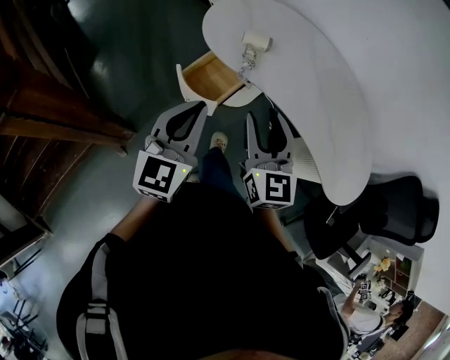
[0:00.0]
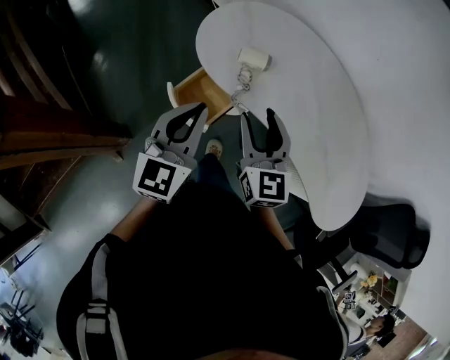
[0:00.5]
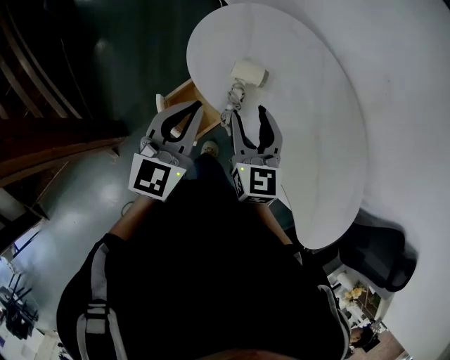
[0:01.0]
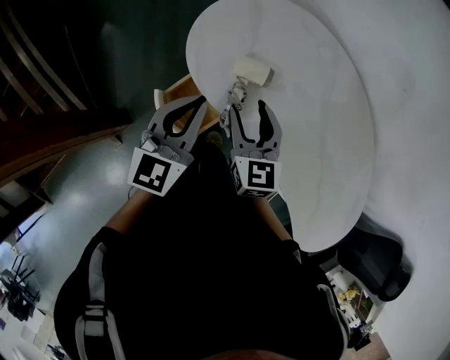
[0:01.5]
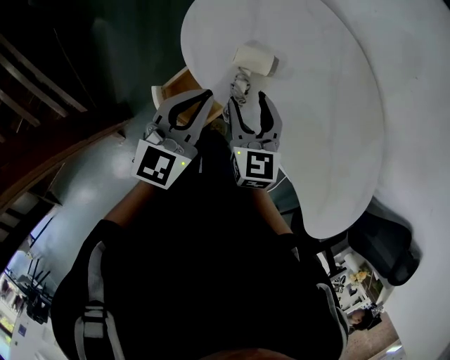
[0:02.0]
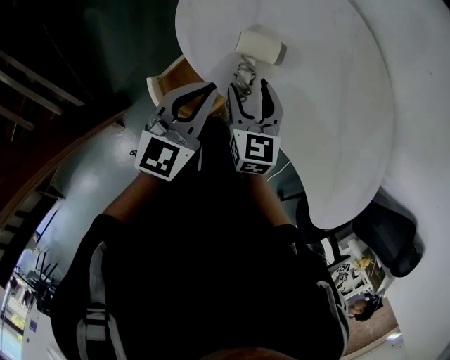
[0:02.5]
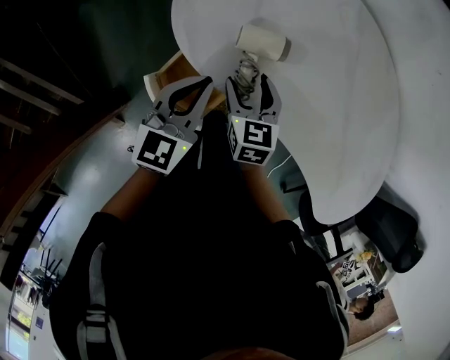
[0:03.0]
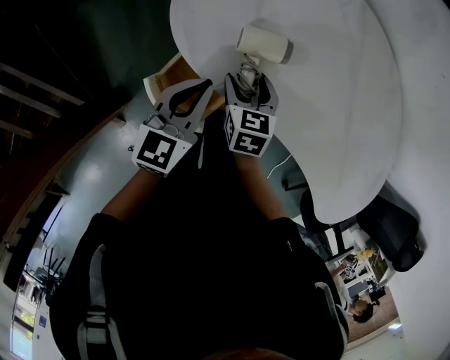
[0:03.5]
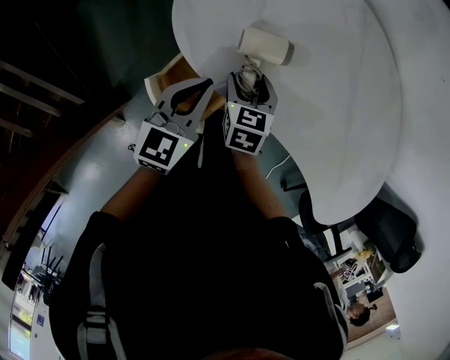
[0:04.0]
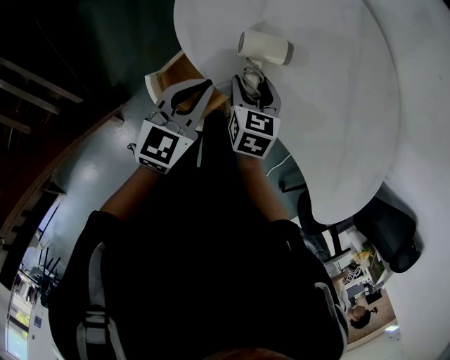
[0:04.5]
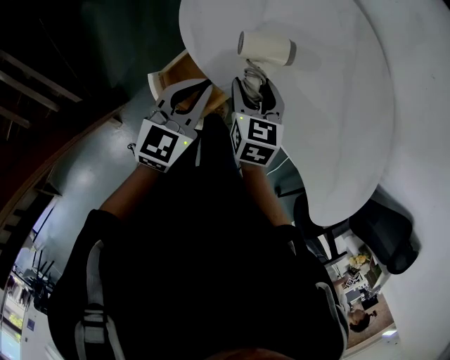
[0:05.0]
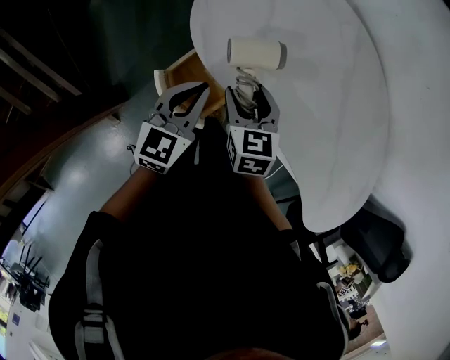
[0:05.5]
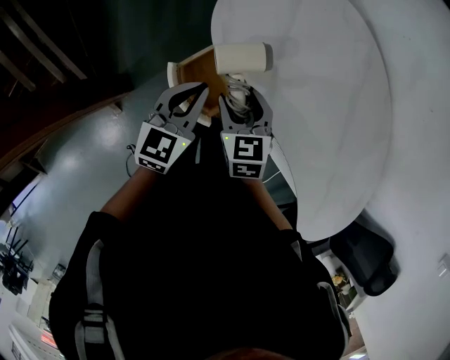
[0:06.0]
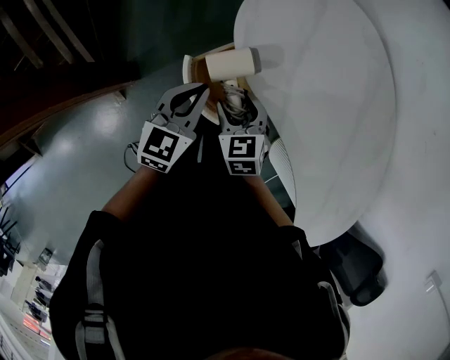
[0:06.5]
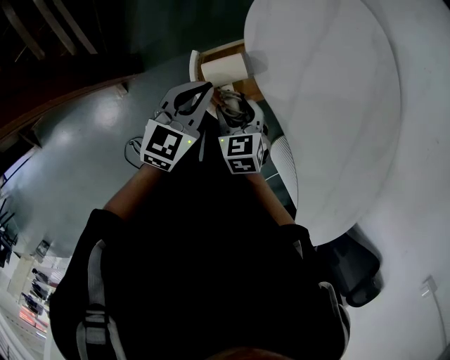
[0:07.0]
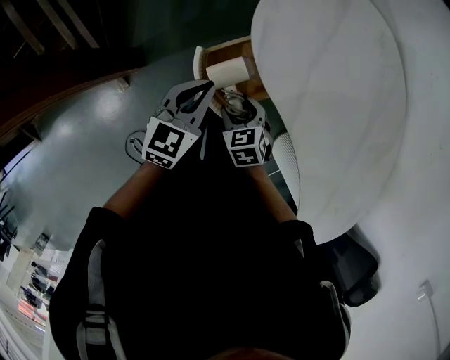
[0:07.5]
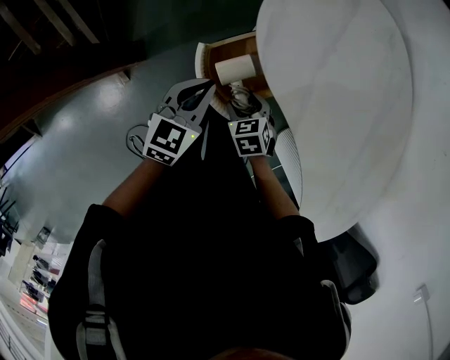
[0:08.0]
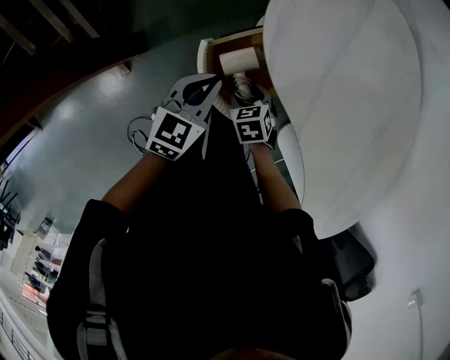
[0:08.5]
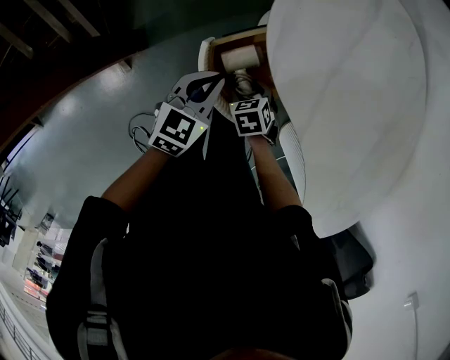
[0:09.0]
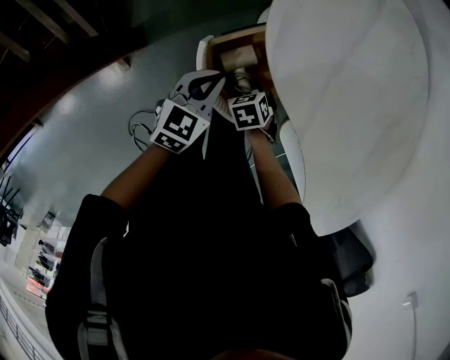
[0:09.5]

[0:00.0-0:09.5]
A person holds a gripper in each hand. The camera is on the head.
0:00.0 to 0:02.0: The left gripper shifts approximately 25 cm forward, while the right gripper is displaced forward and downward by some 30 cm, and changes its angle by about 20 degrees.
0:02.0 to 0:04.0: Both grippers move downward, approximately 10 cm. The right gripper swivels approximately 30 degrees.
0:04.0 to 0:05.5: The right gripper heads upward, covering roughly 10 cm.
0:05.5 to 0:07.5: The left gripper travels to the left by about 10 cm. The right gripper shifts some 20 cm downward, to the left and backward, and rotates approximately 40 degrees.
0:07.5 to 0:09.5: Both grippers travel together downward, roughly 10 cm. The right gripper swivels some 20 degrees.

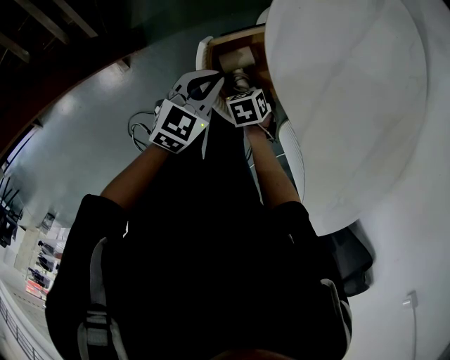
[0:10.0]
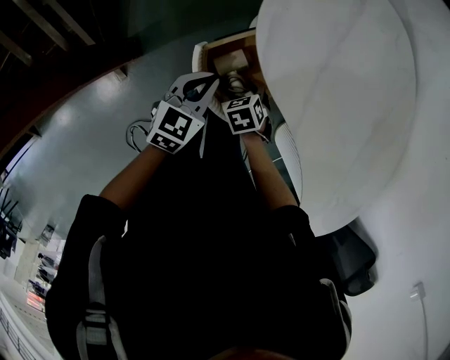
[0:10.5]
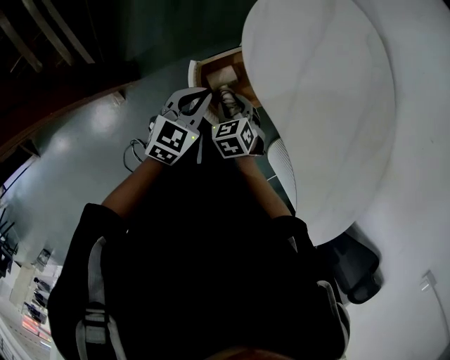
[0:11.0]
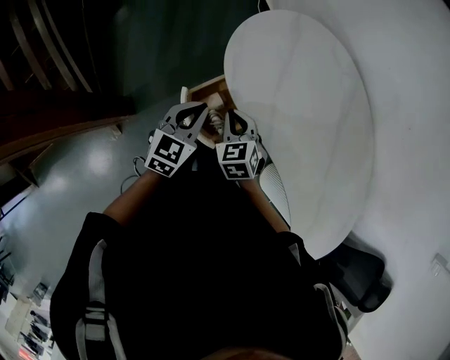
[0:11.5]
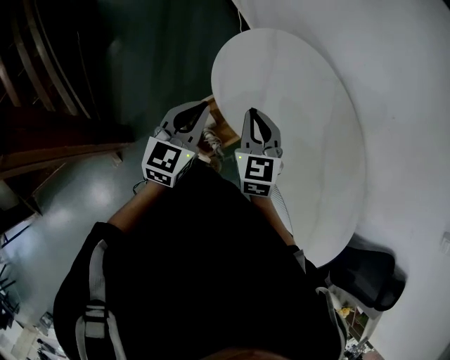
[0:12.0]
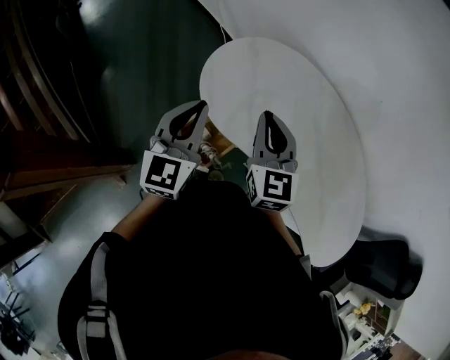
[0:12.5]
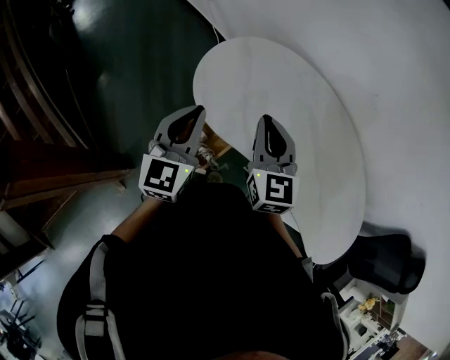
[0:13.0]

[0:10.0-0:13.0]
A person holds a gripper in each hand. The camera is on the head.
0:10.0 to 0:11.5: The left gripper shifts some 15 cm upward, while the right gripper goes about 25 cm upward, tips its fingers upward by roughly 30 degrees, and closes its fingers.
0:11.5 to 0:13.0: The right gripper travels upward and to the right by roughly 25 cm, and points its fingers about 40 degrees further upward. Meanwhile the left gripper heads upward, covering roughly 20 cm, and turns by some 20 degrees.

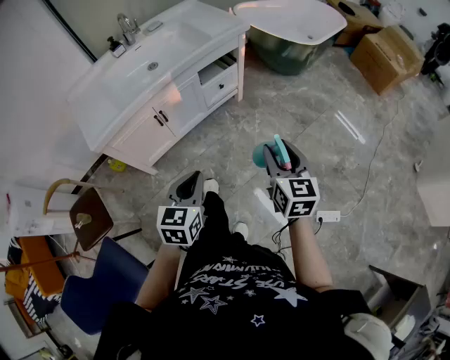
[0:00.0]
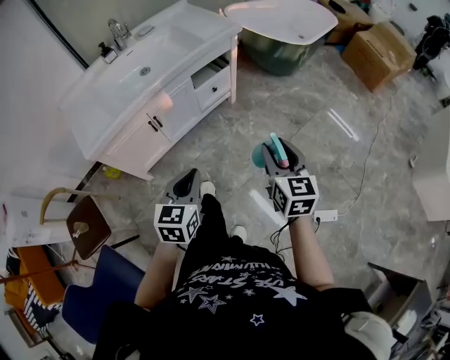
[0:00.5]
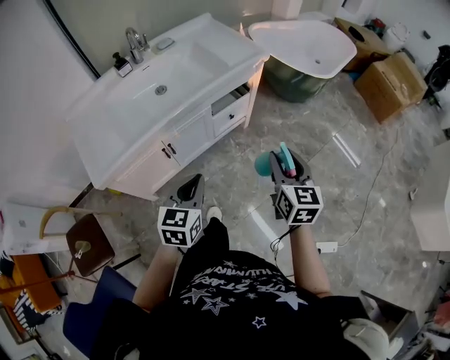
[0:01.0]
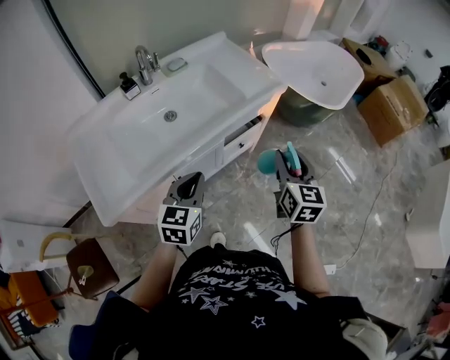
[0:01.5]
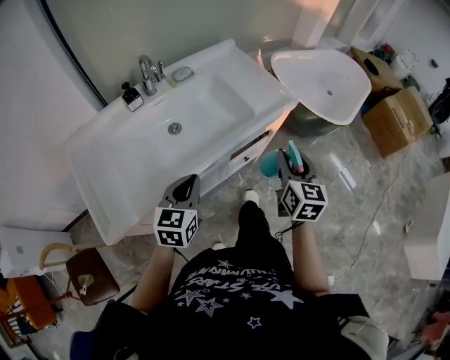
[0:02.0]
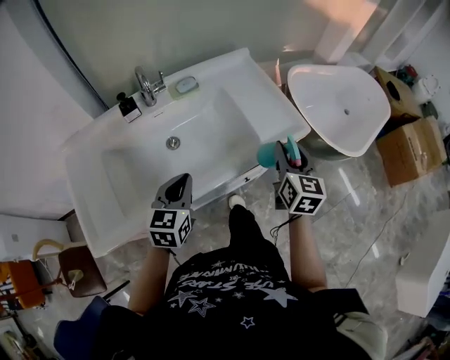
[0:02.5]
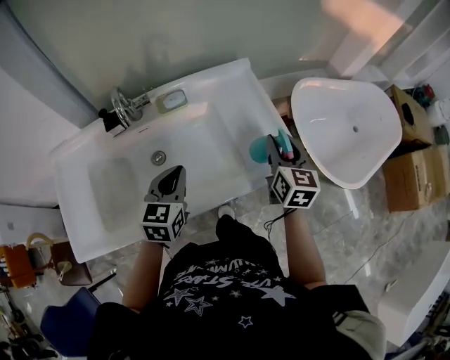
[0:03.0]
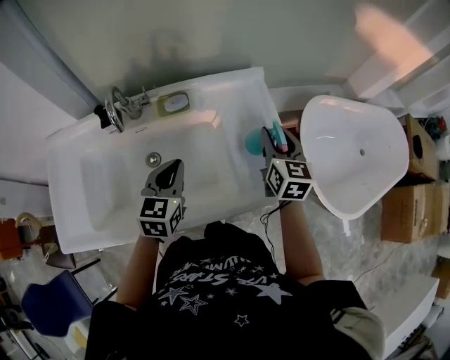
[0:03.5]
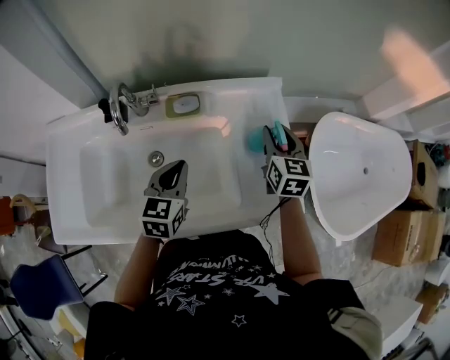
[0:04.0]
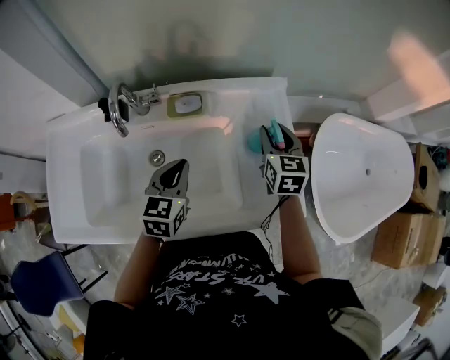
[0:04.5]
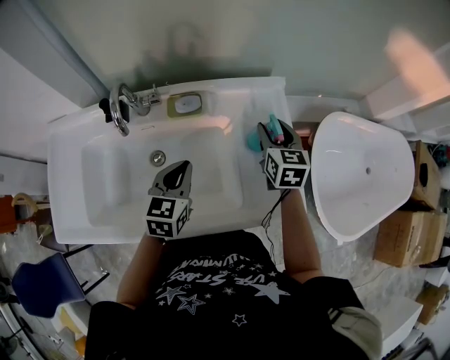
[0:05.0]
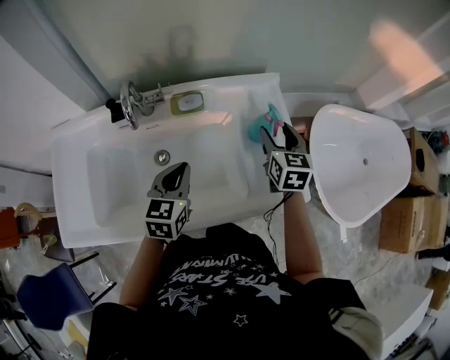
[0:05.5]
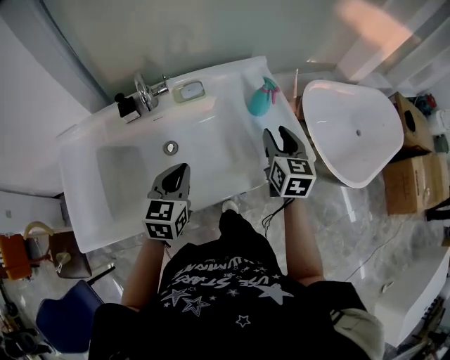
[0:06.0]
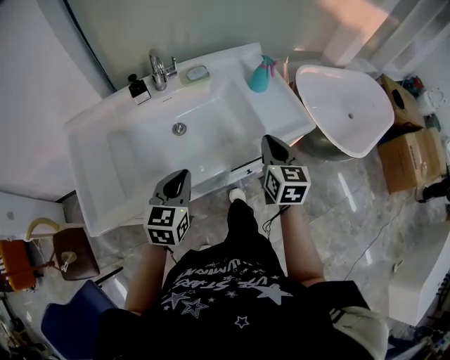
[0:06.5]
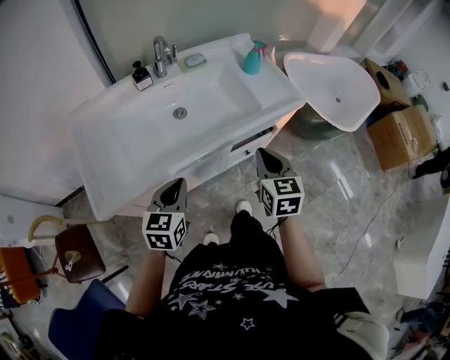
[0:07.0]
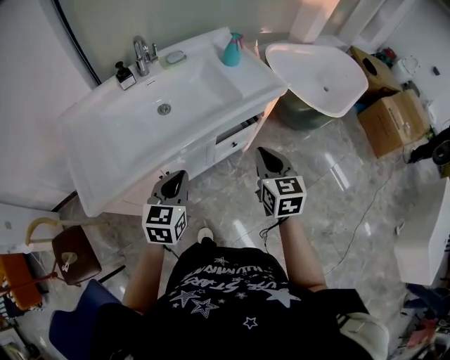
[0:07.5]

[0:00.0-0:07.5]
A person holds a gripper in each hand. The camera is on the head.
0:00.0 to 0:02.0: The two grippers travel together, forward and to the left, about 50 cm.
0:02.0 to 0:04.0: The left gripper changes place by about 35 cm, and swivels roughly 30 degrees, while the right gripper shifts by approximately 50 cm, and turns by roughly 30 degrees.
0:04.0 to 0:05.5: The right gripper opens.
0:05.5 to 0:07.5: Both grippers move backward, roughly 40 cm. The left gripper swivels roughly 20 degrees. The right gripper closes up.

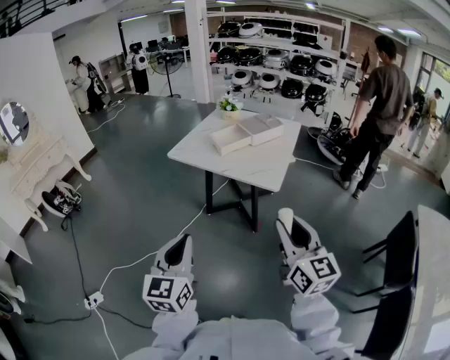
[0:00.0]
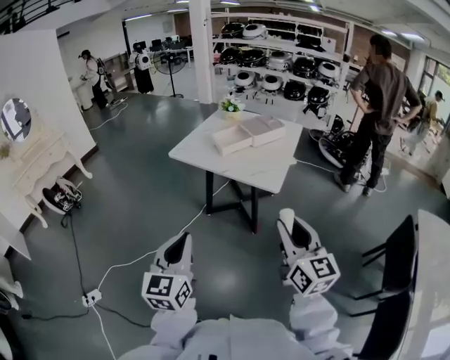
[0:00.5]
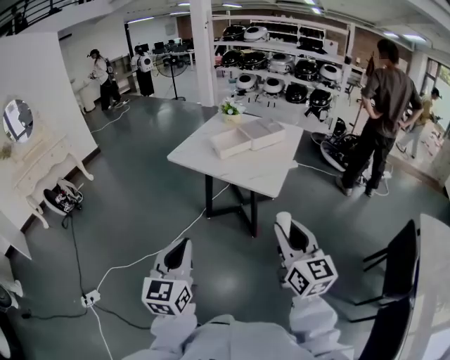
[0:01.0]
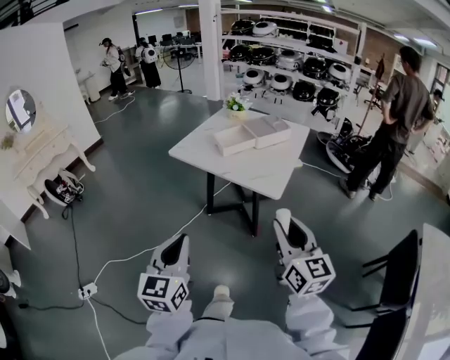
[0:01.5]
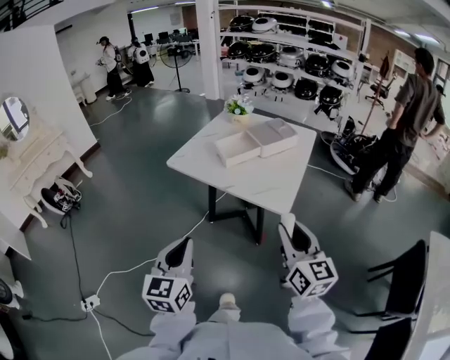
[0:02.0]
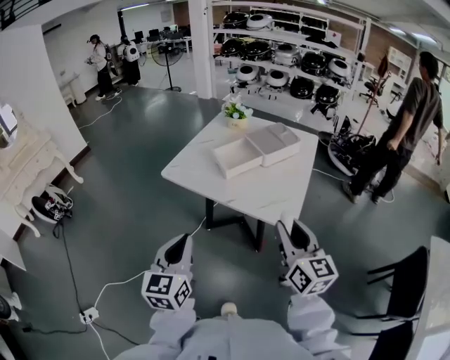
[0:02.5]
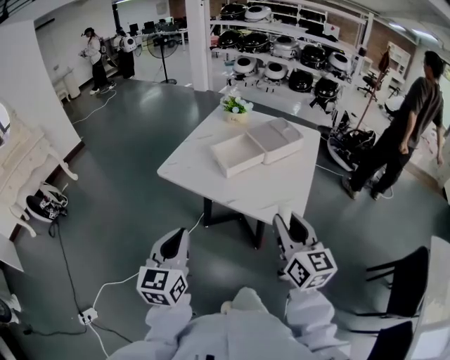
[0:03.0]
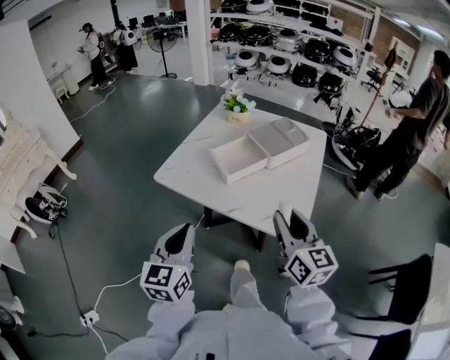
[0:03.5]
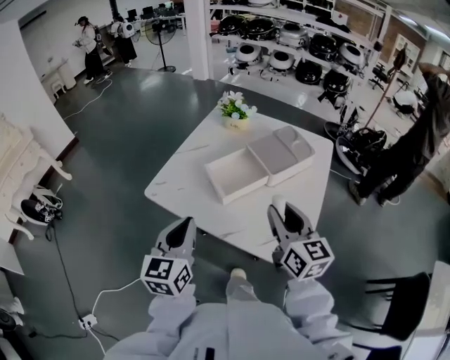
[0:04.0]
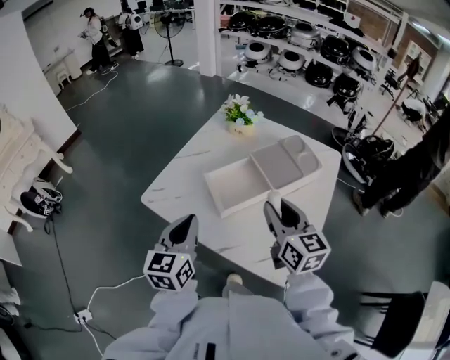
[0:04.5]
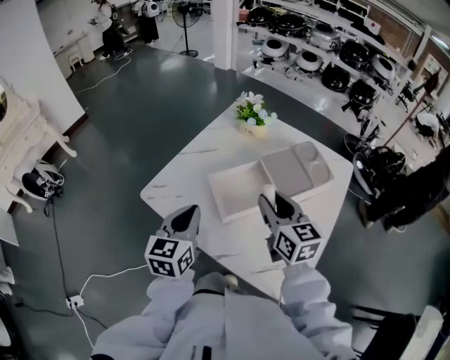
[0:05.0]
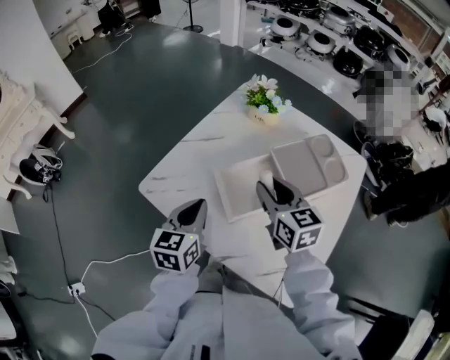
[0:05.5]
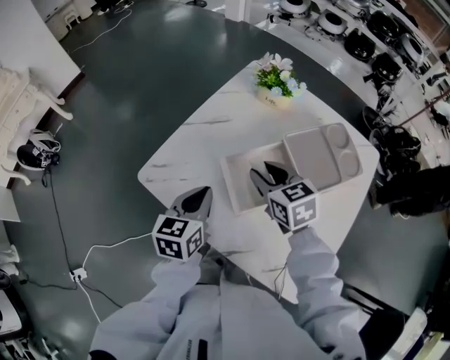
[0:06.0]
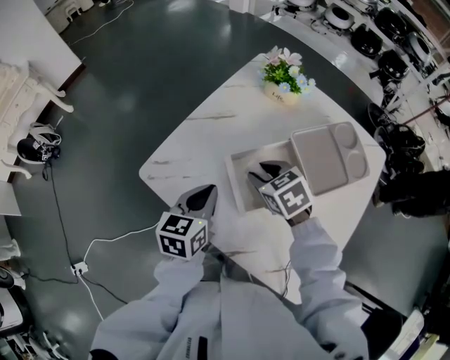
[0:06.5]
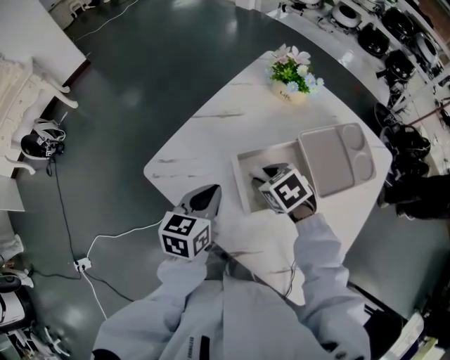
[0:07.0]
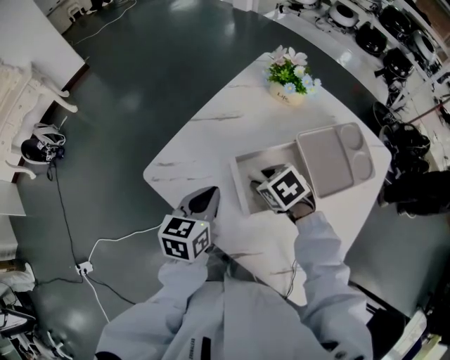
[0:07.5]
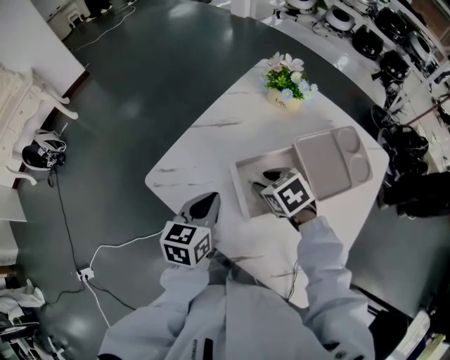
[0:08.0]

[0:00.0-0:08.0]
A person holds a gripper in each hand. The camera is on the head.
0:00.0 to 0:02.0: The grippers both shift forward by approximately 15 cm.
0:02.0 to 0:04.0: Both grippers travel together forward, about 35 cm.
0:04.0 to 0:06.0: Both grippers travel together forward and downward, roughly 30 cm. The right gripper turns by about 40 degrees, while the left gripper changes its angle by approximately 20 degrees.
0:06.0 to 0:08.0: The right gripper shifts some 5 cm downward, and rotates about 30 degrees.
